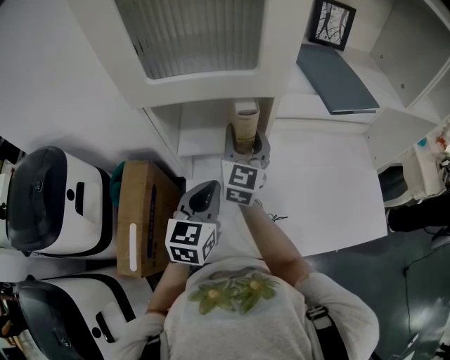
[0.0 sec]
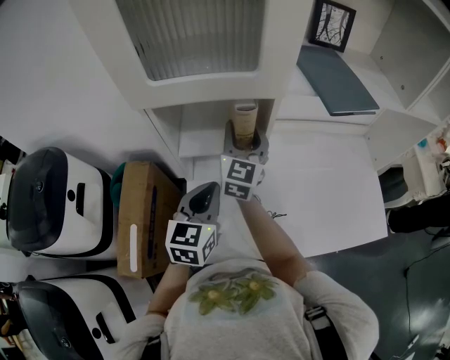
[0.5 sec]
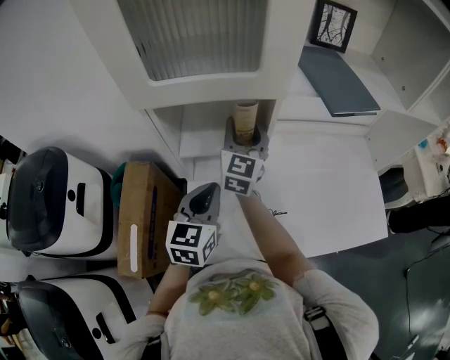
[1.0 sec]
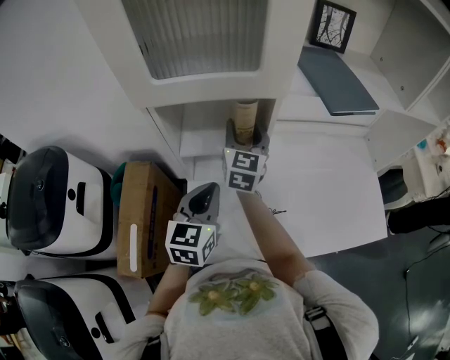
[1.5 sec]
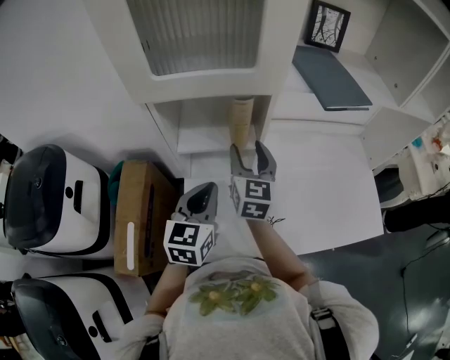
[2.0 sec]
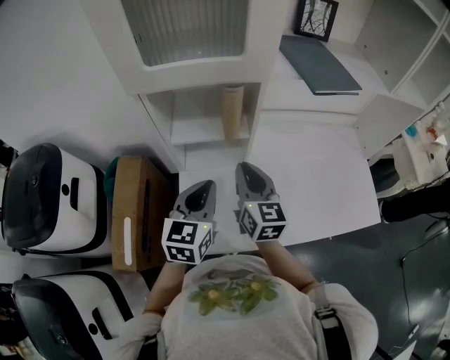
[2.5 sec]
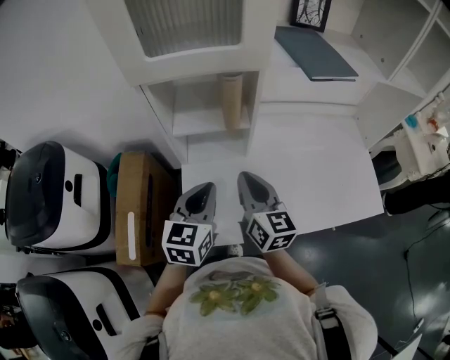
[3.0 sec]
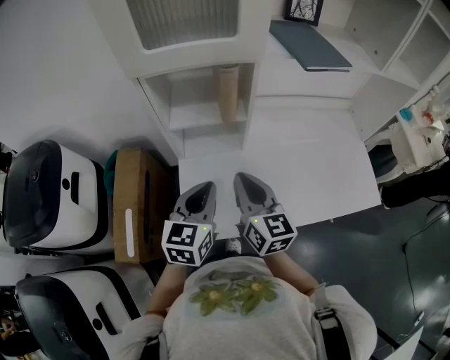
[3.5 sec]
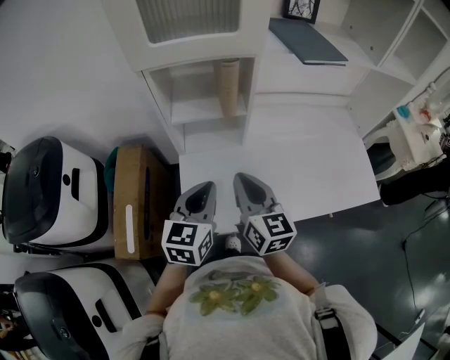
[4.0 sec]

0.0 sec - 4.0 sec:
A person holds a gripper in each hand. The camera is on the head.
0.0 sec - 2.0 sec: The right gripper ends up roughly 5 cm from where it was.
2.0 sec - 4.0 sec: The right gripper goes approximately 20 cm backward, and closes its fingers; the left gripper heads backward, covering roughly 10 cm.

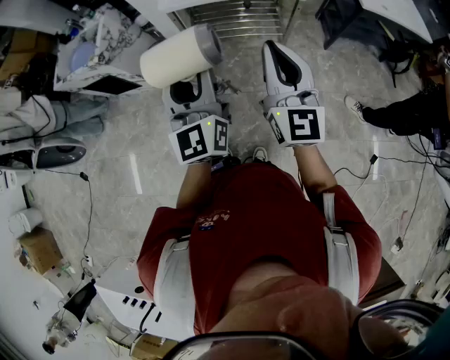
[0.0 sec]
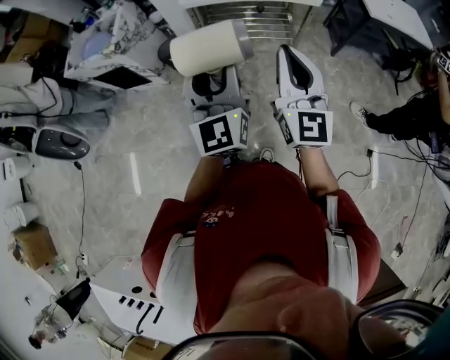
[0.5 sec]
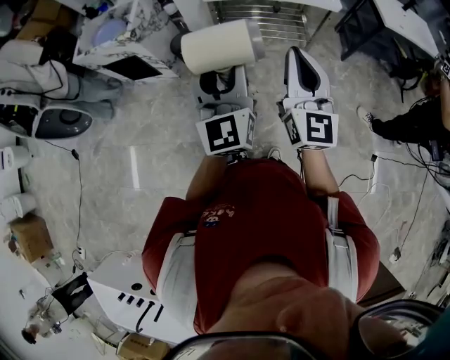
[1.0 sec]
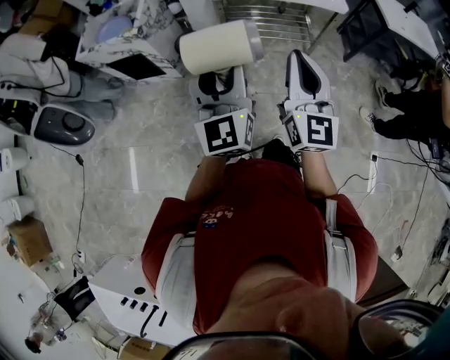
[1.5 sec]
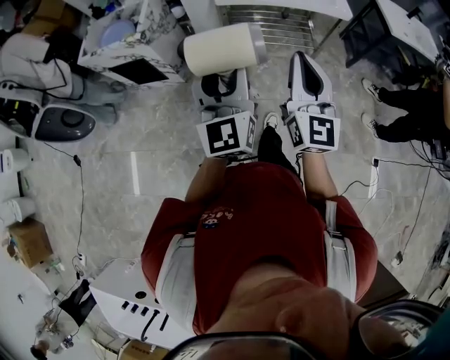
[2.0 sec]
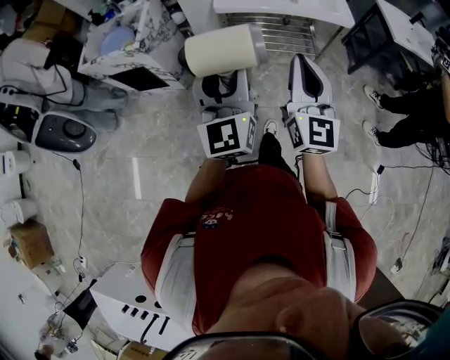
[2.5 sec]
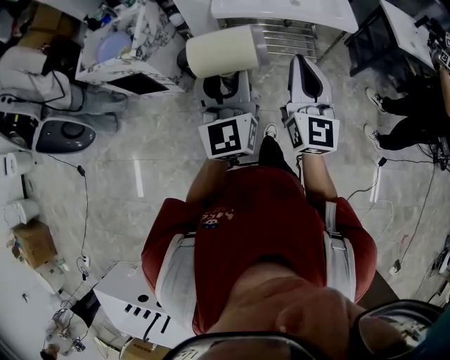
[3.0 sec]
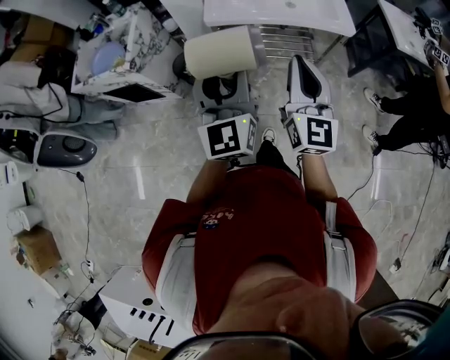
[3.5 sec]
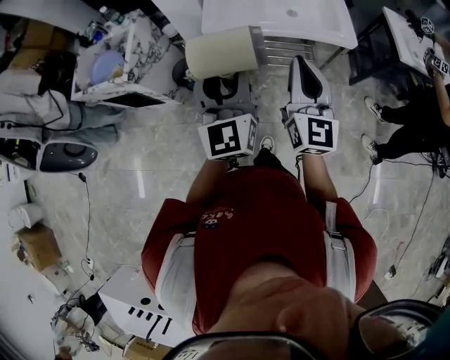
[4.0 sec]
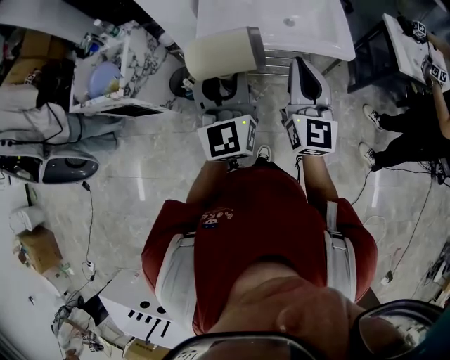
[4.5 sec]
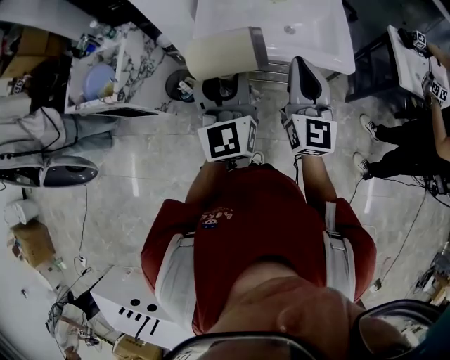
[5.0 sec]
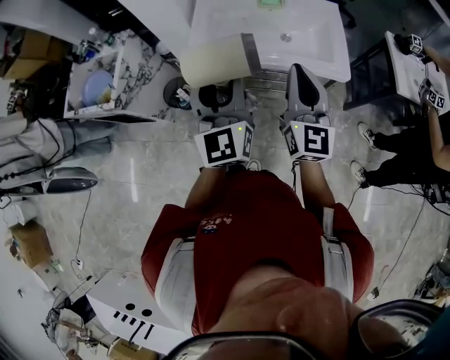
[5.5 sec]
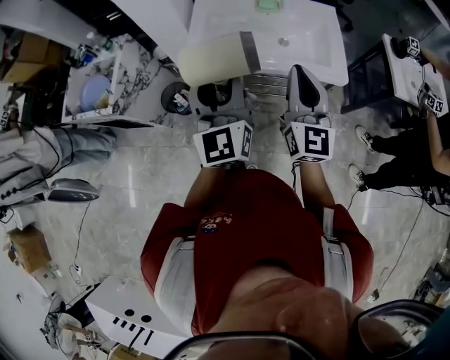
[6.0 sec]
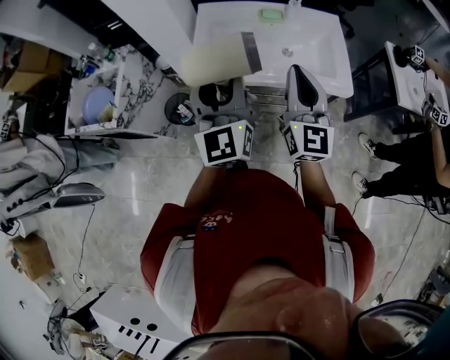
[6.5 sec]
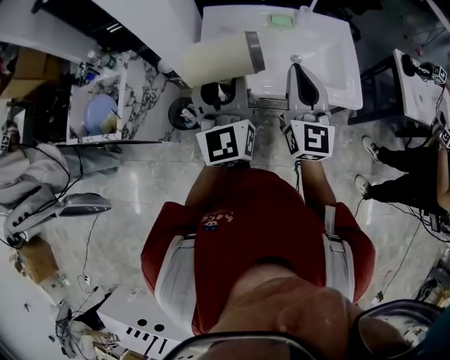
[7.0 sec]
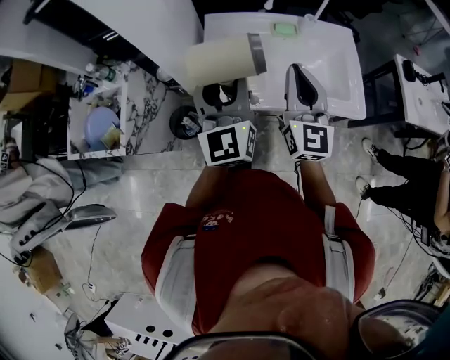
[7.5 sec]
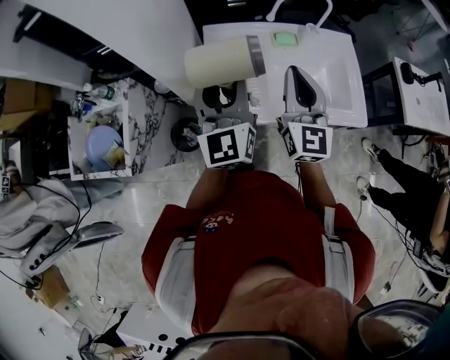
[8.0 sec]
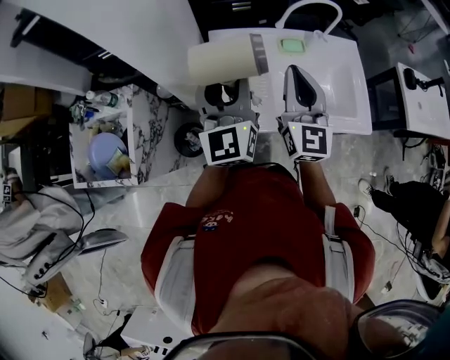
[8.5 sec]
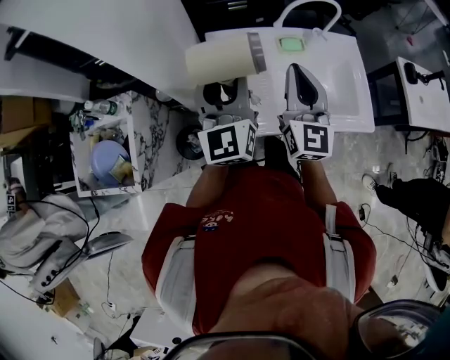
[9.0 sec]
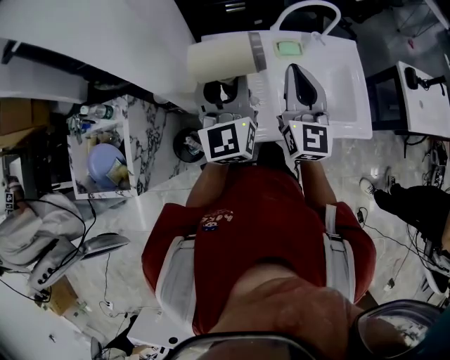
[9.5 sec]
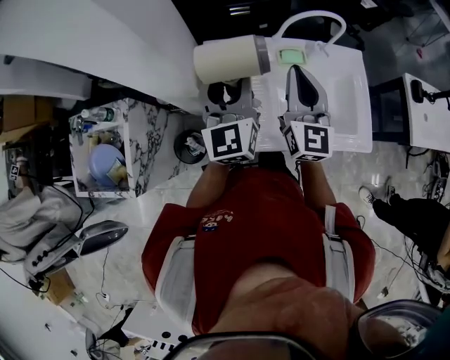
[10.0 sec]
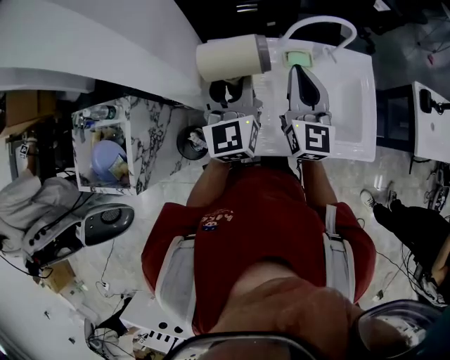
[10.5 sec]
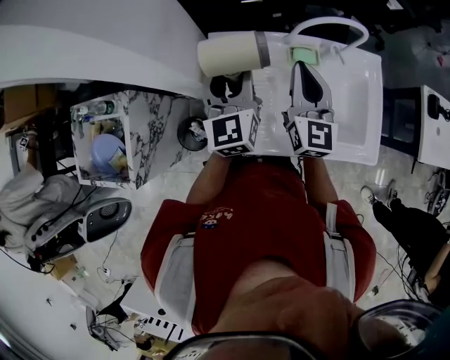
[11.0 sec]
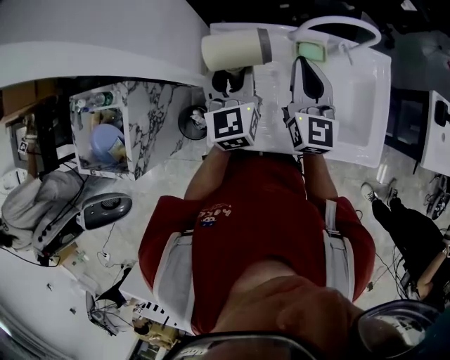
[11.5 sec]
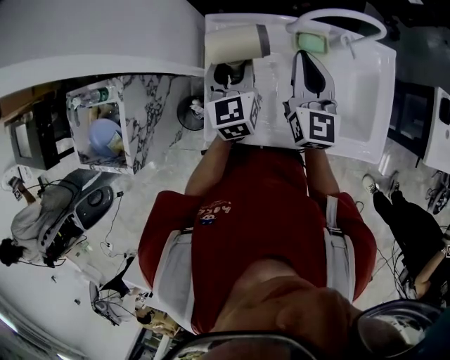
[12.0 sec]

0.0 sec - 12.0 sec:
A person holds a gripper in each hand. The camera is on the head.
0.0 sec - 2.0 sec: The grippers both shift to the left by some 20 cm.
2.0 sec - 4.0 sec: The right gripper moves forward, some 25 cm. The left gripper shifts roughly 25 cm forward and to the right.
4.0 sec - 6.0 sec: The grippers both shift forward and to the right by roughly 15 cm.
6.0 sec - 8.0 sec: The right gripper is displaced forward and to the left by about 30 cm. Meanwhile the left gripper heads forward, covering approximately 25 cm.
8.0 sec - 10.0 sec: The grippers both shift forward by some 15 cm.
10.0 sec - 12.0 sec: The right gripper moves forward and downward, about 15 cm. Meanwhile the left gripper goes about 20 cm downward and forward, and turns by approximately 20 degrees.

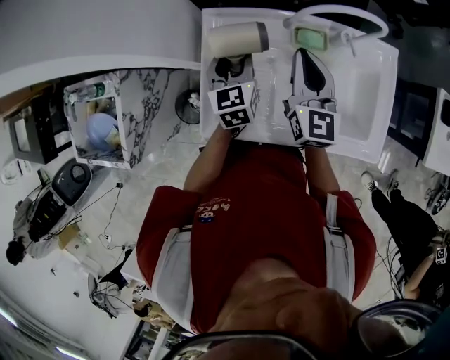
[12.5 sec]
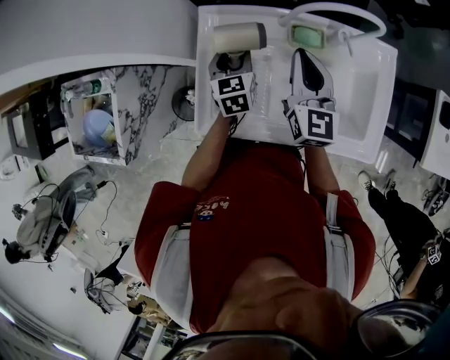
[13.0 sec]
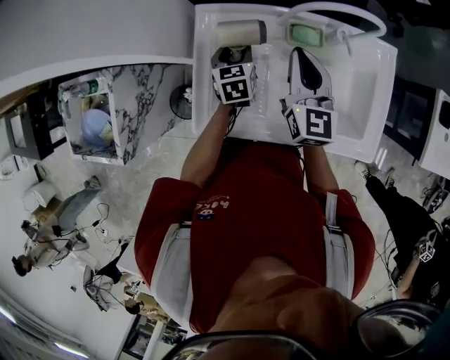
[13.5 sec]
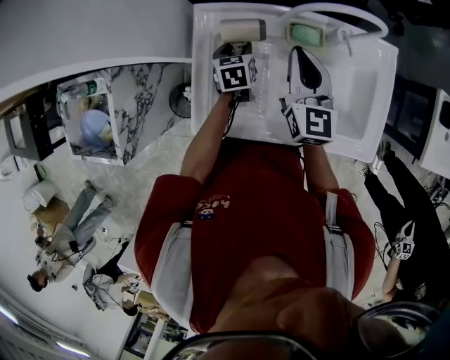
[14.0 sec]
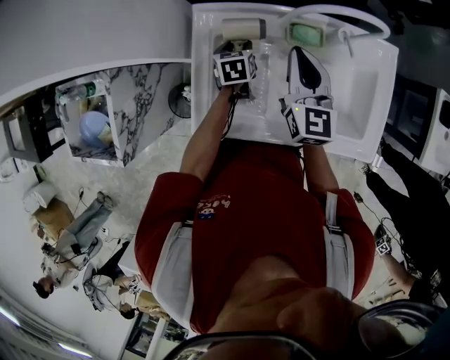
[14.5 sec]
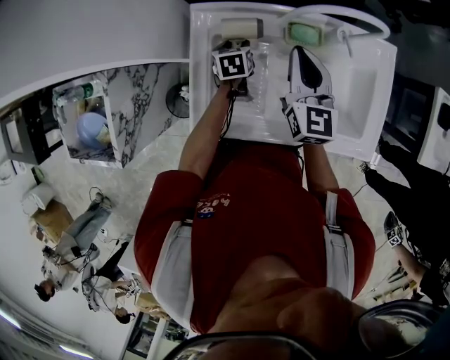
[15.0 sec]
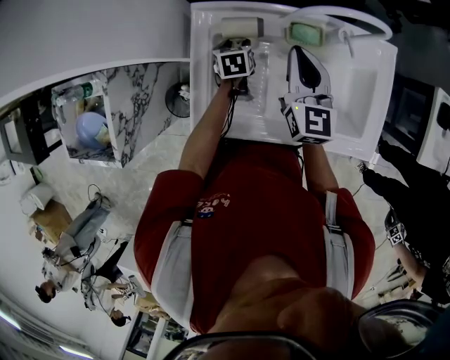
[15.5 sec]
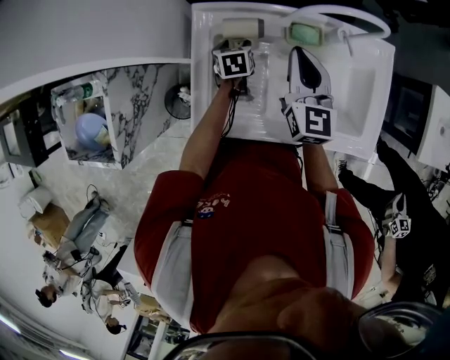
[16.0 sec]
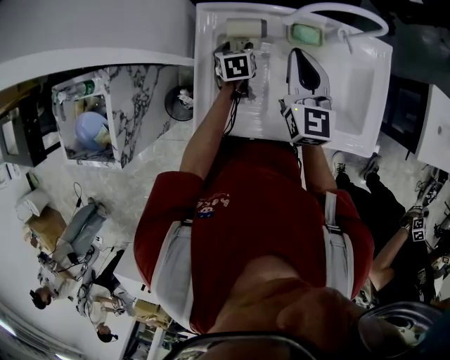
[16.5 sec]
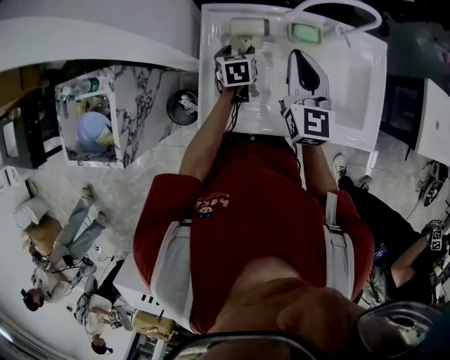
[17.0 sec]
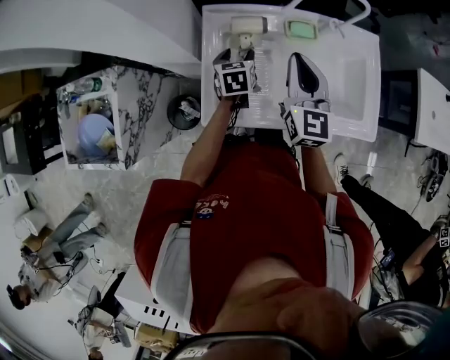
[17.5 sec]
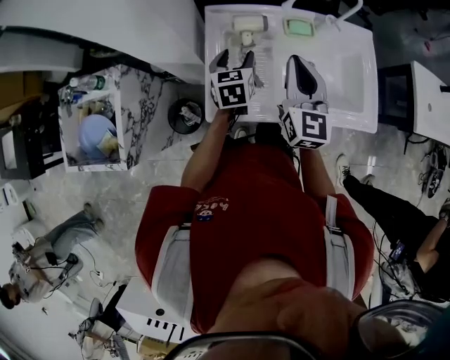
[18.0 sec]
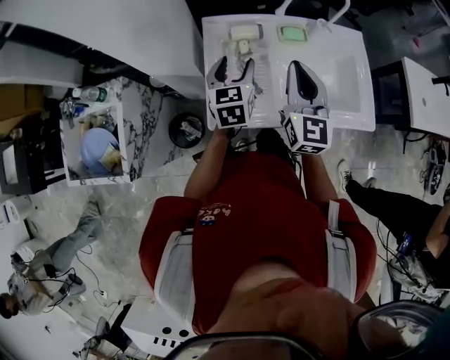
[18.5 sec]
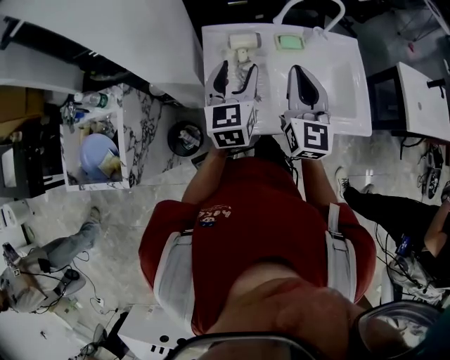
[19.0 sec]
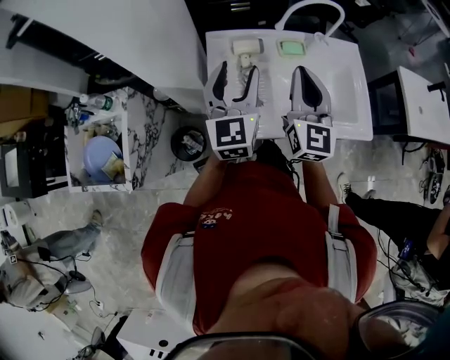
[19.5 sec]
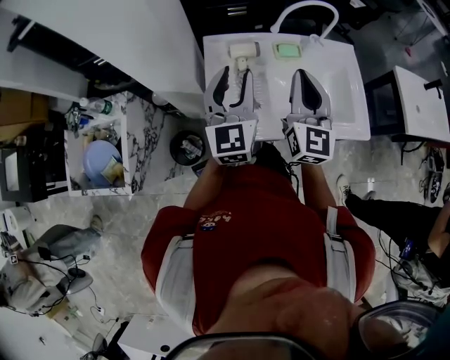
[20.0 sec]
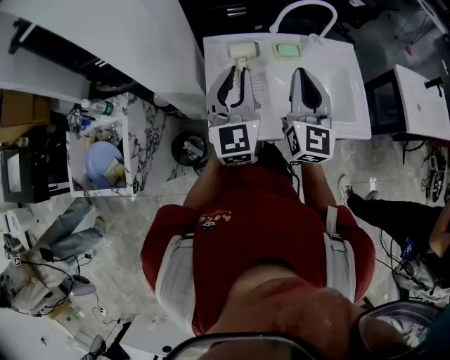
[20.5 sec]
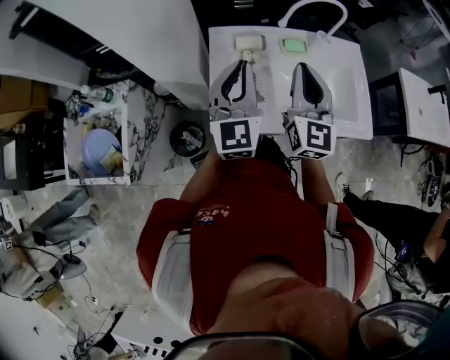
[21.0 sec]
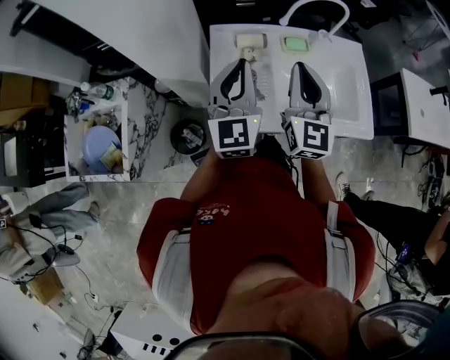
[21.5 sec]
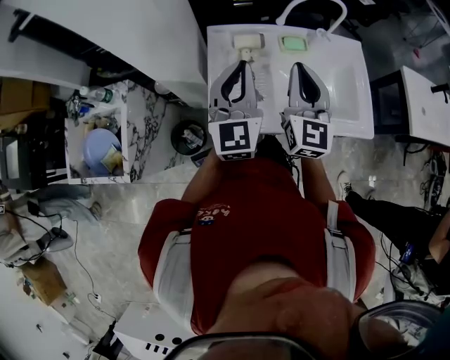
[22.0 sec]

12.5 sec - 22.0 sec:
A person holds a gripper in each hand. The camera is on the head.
12.5 sec - 14.5 sec: The left gripper shifts about 15 cm downward, and changes its angle by approximately 30 degrees.
14.5 sec - 16.5 sec: The grippers make only small movements.
16.5 sec - 18.0 sec: The right gripper travels backward and upward by roughly 15 cm. Meanwhile the left gripper moves upward and backward, some 20 cm, and rotates roughly 20 degrees.
18.0 sec - 20.0 sec: The left gripper goes about 20 cm upward and backward, points its fingers some 30 degrees further upward, and closes up. The right gripper travels upward by roughly 5 cm.
20.0 sec - 22.0 sec: The left gripper closes up.

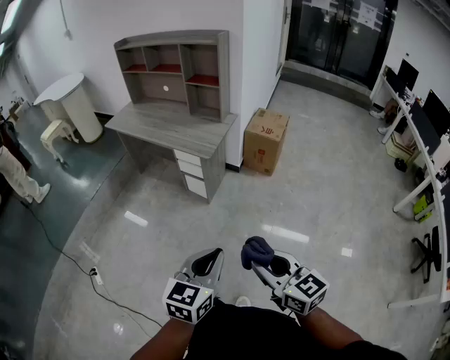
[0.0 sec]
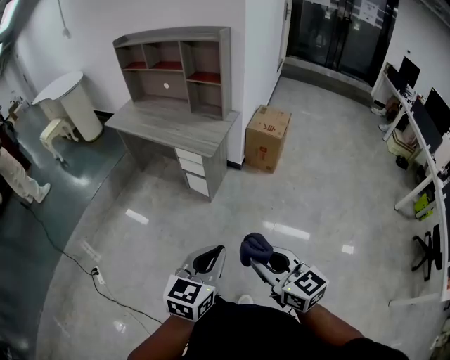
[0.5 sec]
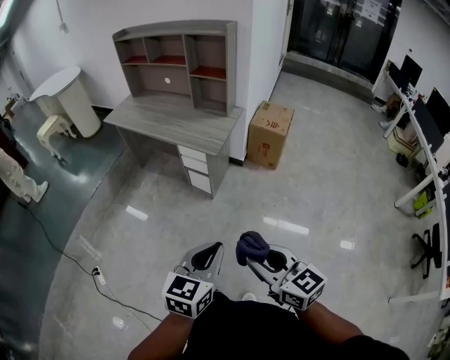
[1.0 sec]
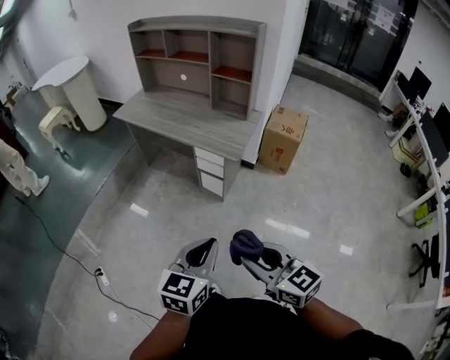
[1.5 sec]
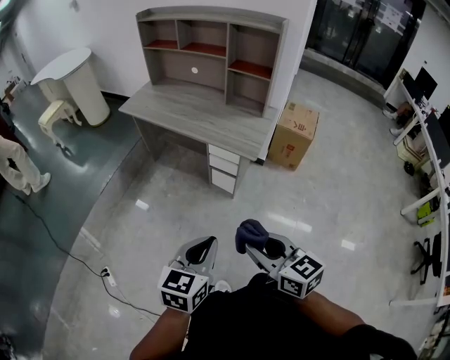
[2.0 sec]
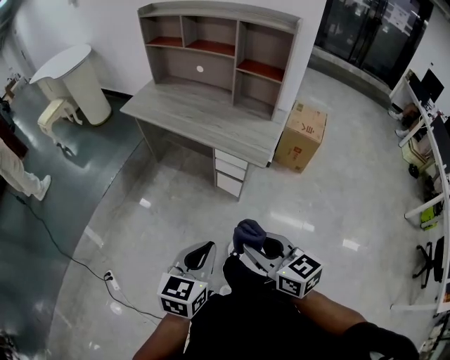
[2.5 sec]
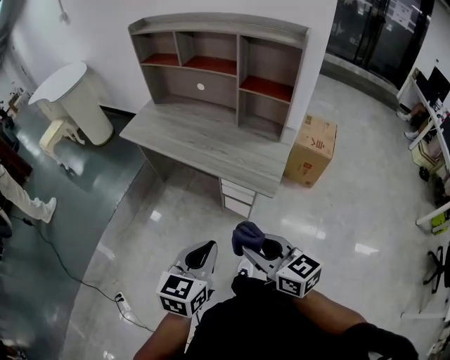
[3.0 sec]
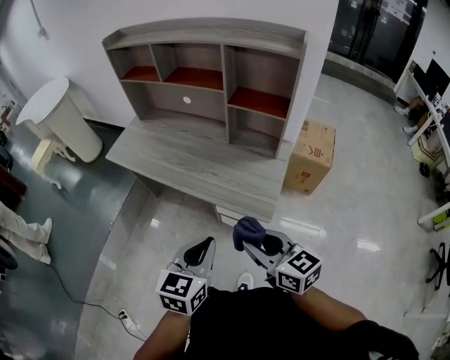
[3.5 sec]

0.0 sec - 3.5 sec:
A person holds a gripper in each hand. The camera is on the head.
0.0 sec - 2.0 sec: Both grippers travel together to the left and forward, about 30 cm.
2.0 sec - 3.5 sec: Both grippers travel together forward, about 35 cm.
